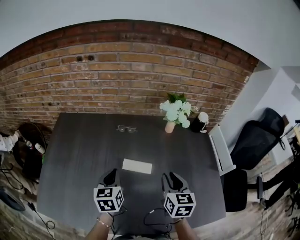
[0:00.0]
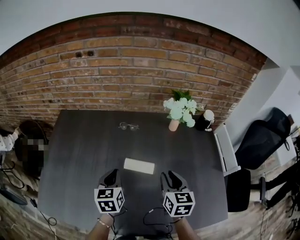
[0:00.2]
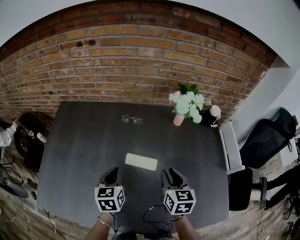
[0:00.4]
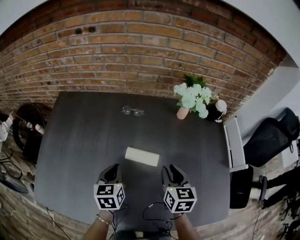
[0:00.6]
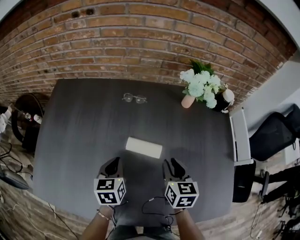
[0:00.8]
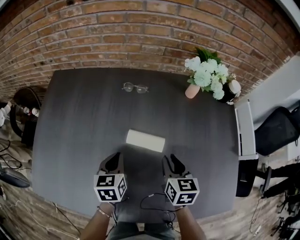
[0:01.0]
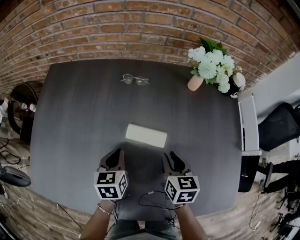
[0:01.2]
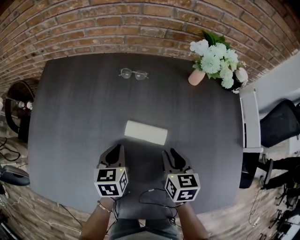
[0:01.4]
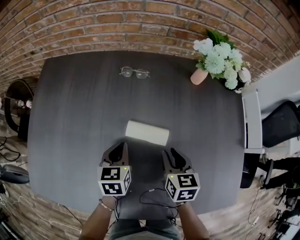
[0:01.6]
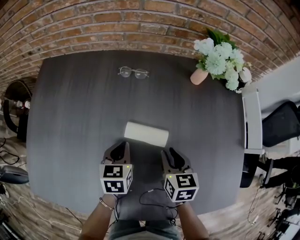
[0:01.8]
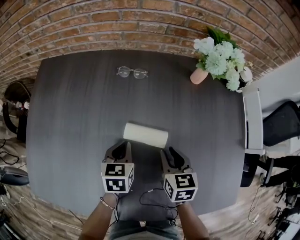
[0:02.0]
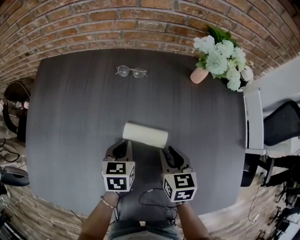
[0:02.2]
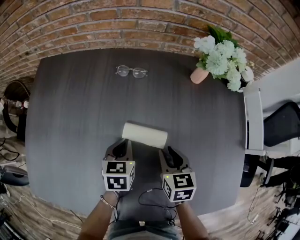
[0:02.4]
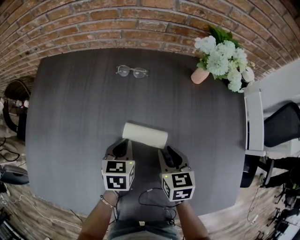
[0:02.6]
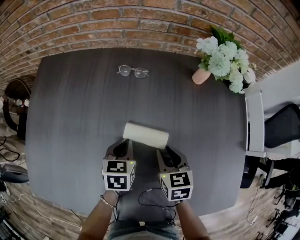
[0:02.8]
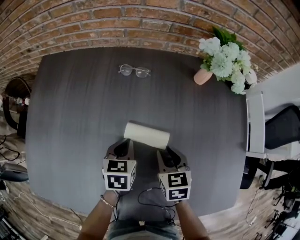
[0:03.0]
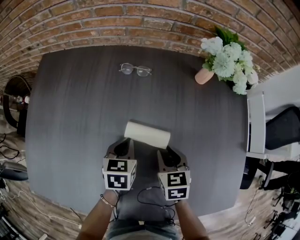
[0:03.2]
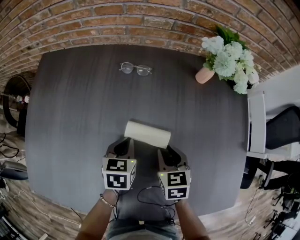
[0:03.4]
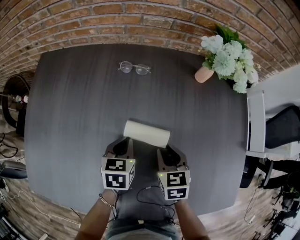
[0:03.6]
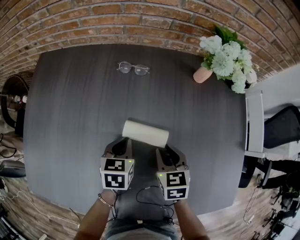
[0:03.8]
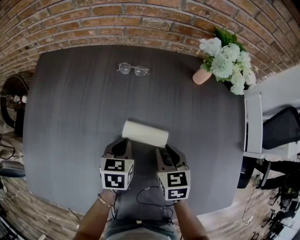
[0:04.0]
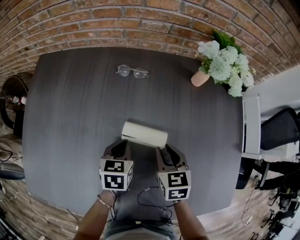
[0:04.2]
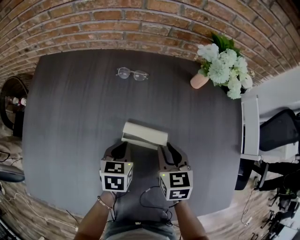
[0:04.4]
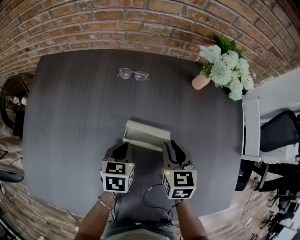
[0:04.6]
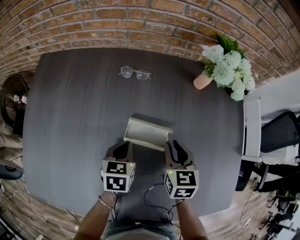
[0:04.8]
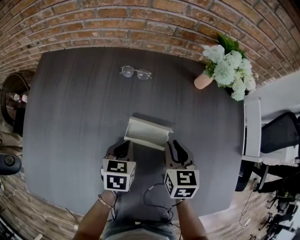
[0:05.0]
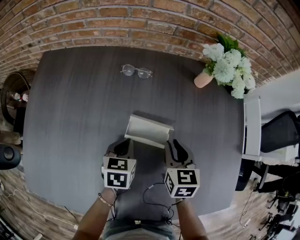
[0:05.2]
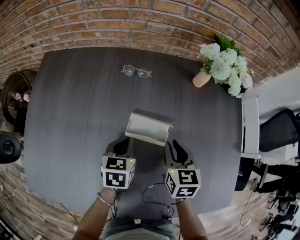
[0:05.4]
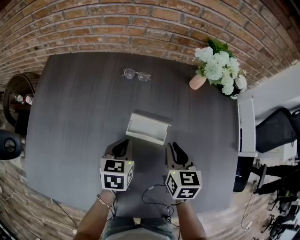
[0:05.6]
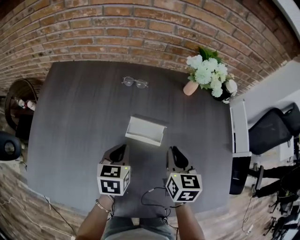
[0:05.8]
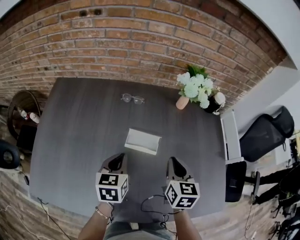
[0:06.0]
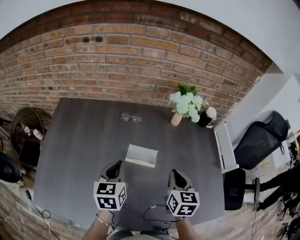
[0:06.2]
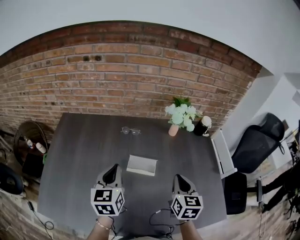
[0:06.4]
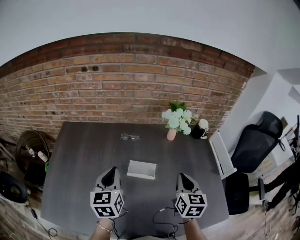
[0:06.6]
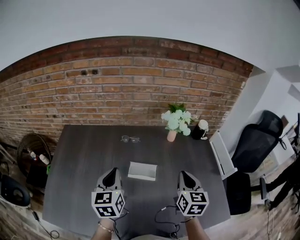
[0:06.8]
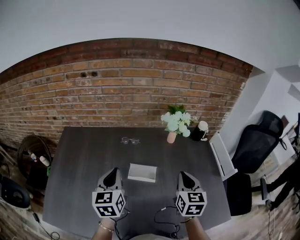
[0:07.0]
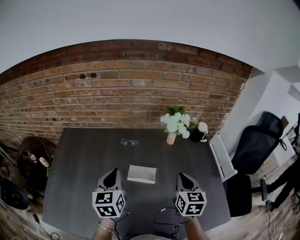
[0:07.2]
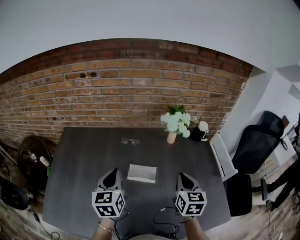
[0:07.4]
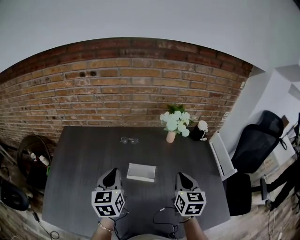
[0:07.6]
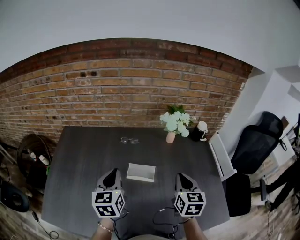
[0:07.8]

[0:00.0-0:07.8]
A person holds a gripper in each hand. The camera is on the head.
0:00.0 to 0:01.6: The grippers both shift downward by approximately 15 cm.
0:01.6 to 0:03.2: The grippers move only a little.
0:03.2 to 0:04.6: The right gripper shifts by some 5 cm.
0:04.6 to 0:06.2: The left gripper heads upward, covering approximately 20 cm, and changes its angle by roughly 20 degrees; the right gripper goes some 15 cm upward and backward, and closes up.
0:06.2 to 0:07.8: The grippers both shift upward by approximately 5 cm.

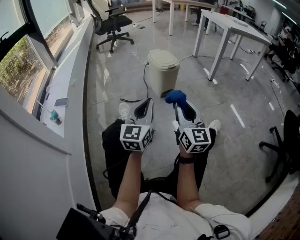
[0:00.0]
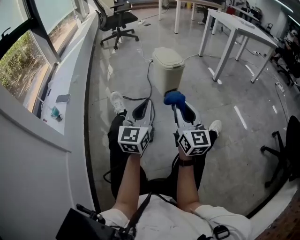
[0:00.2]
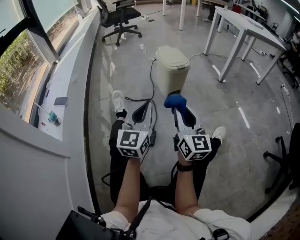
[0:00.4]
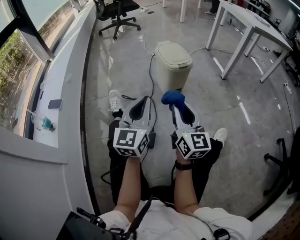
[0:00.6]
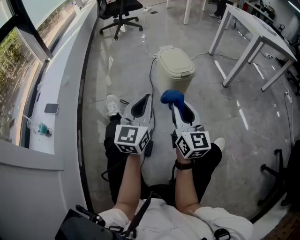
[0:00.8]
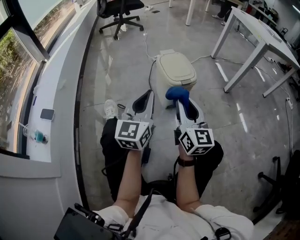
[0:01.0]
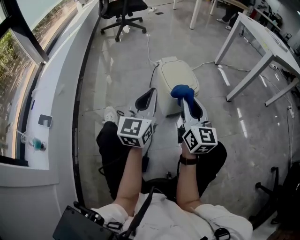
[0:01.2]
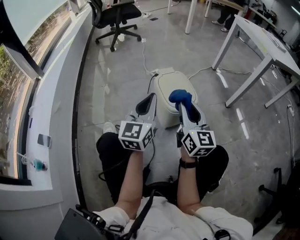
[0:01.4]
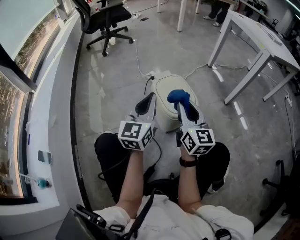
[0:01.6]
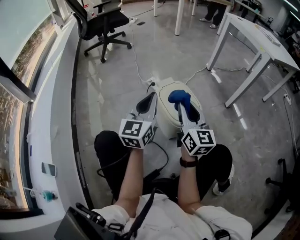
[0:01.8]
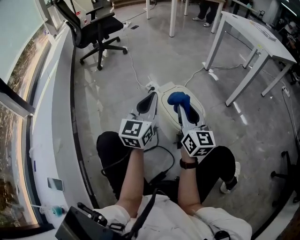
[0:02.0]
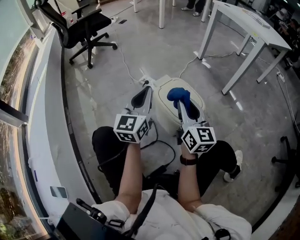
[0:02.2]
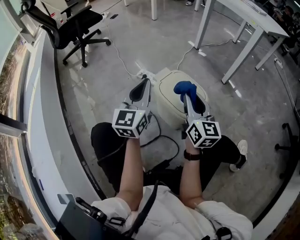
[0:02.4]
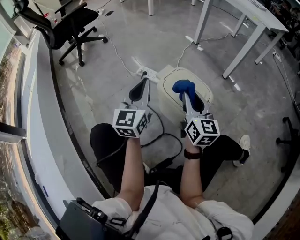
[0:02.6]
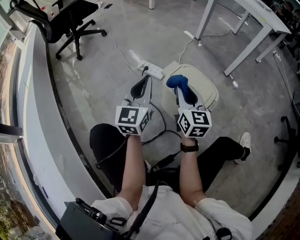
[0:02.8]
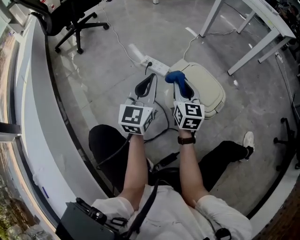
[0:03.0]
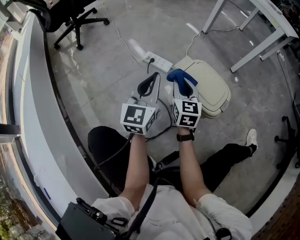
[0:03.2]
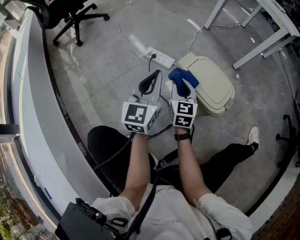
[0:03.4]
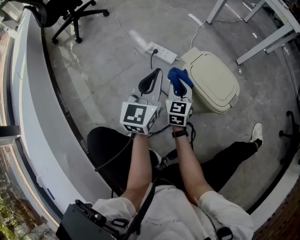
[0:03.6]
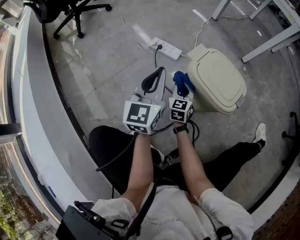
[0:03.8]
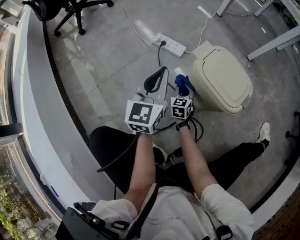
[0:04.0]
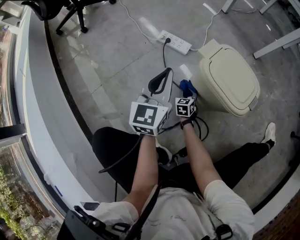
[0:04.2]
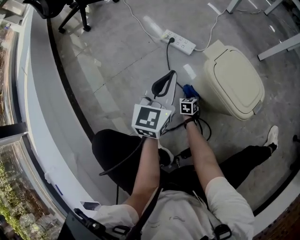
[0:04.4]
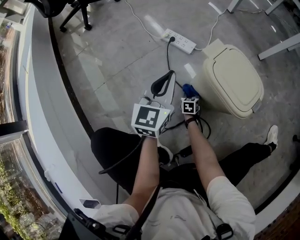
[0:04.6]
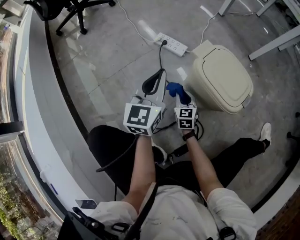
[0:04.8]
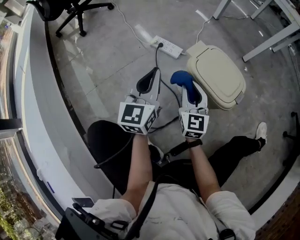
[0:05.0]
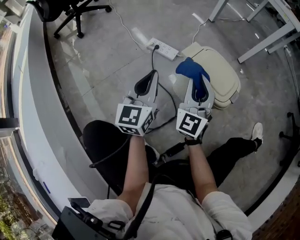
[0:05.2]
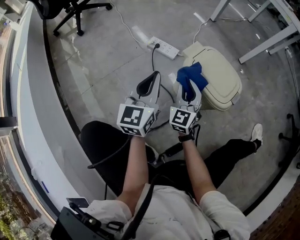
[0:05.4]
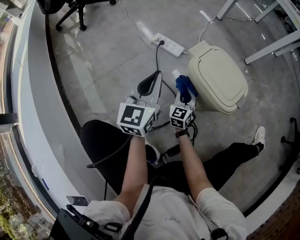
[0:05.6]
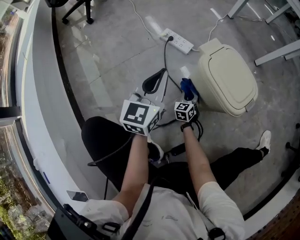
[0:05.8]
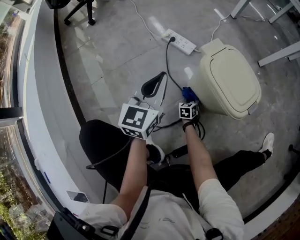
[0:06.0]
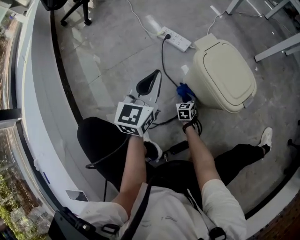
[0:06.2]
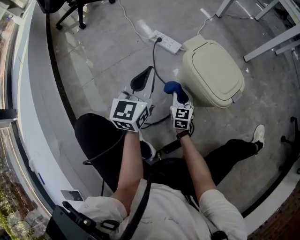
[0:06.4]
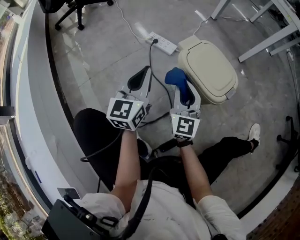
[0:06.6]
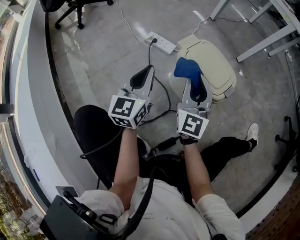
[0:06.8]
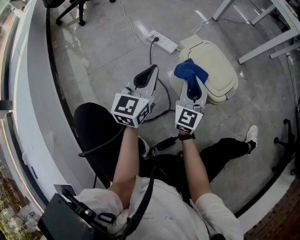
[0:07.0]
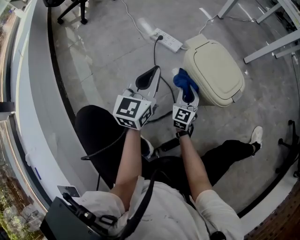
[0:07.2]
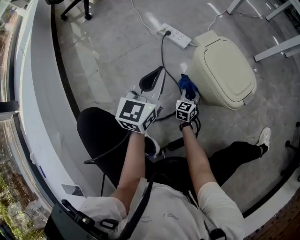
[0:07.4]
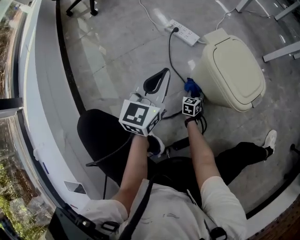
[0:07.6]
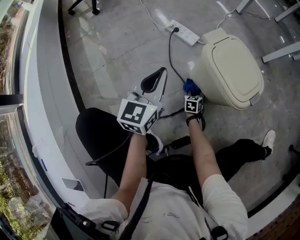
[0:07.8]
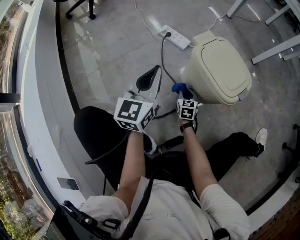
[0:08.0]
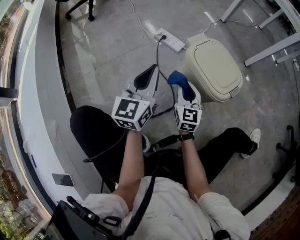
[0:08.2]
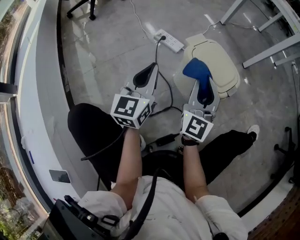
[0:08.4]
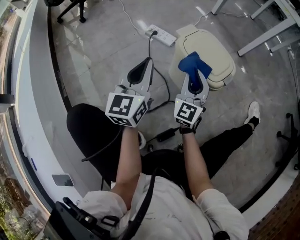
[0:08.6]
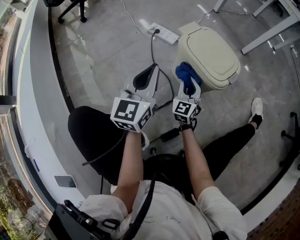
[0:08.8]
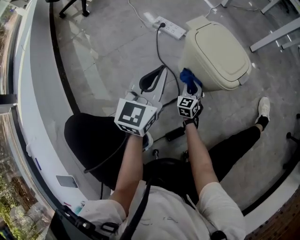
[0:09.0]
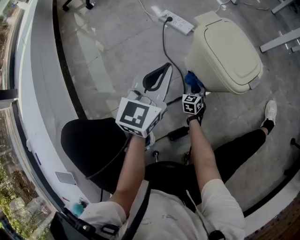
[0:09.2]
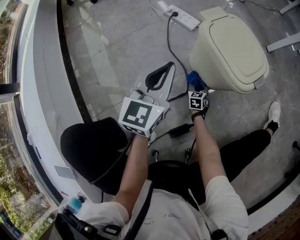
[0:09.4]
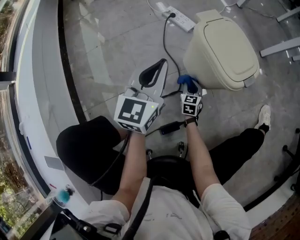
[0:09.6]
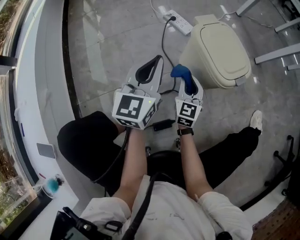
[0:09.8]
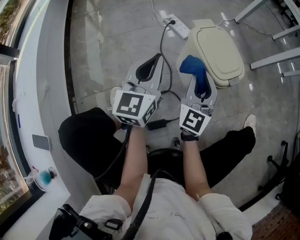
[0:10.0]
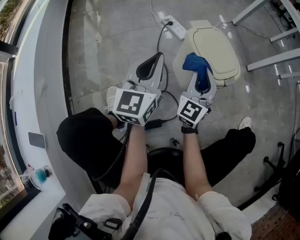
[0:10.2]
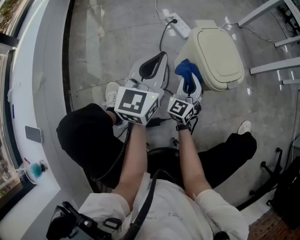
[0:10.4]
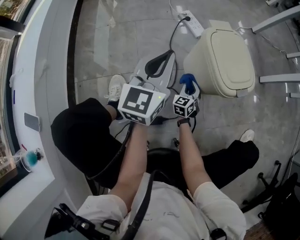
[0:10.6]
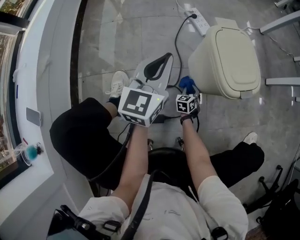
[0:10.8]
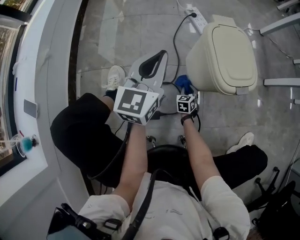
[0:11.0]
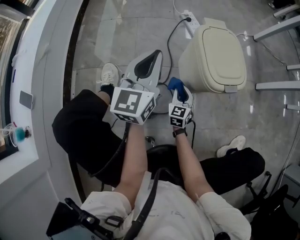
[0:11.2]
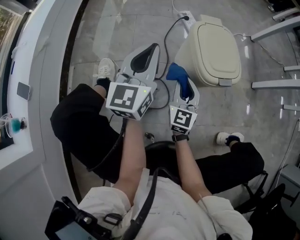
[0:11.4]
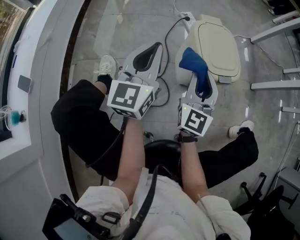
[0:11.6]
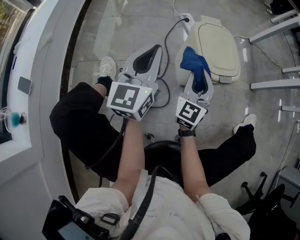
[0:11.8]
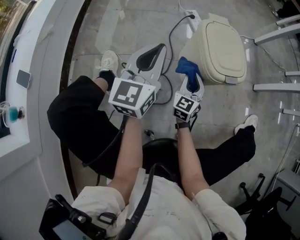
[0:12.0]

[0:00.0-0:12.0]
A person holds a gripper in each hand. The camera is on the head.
0:00.0 to 0:01.6: Both grippers are carried forward, about 50 cm.
0:01.6 to 0:03.0: The left gripper shifts approximately 20 cm forward, to the left and downward, while the right gripper heads to the left, forward and downward, covering some 25 cm, and turns by about 30 degrees.
0:03.0 to 0:04.4: The left gripper travels downward by roughly 10 cm. Meanwhile the right gripper heads downward, covering some 40 cm, and tilts its fingers roughly 40 degrees downward.
0:04.4 to 0:06.0: The right gripper moves about 50 cm upward and comes back.
0:06.0 to 0:07.6: The right gripper reaches roughly 50 cm upward, then returns.
0:07.6 to 0:09.0: The right gripper goes upward and returns, some 50 cm each way. The left gripper heads backward, covering about 5 cm.
0:09.0 to 0:10.4: The right gripper moves up and down over approximately 40 cm, changing direction 2 times, and rotates some 20 degrees. Meanwhile the left gripper swivels some 20 degrees.
0:10.4 to 0:12.0: The right gripper goes up and down, roughly 40 cm each way, reversing 2 times. The left gripper travels backward by approximately 5 cm.

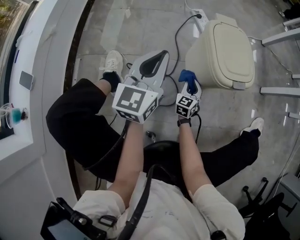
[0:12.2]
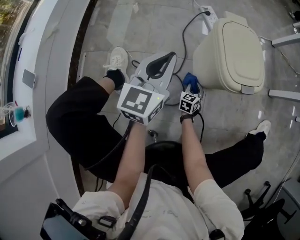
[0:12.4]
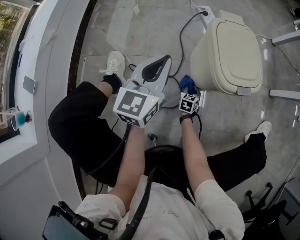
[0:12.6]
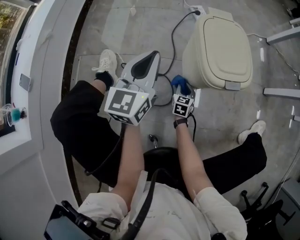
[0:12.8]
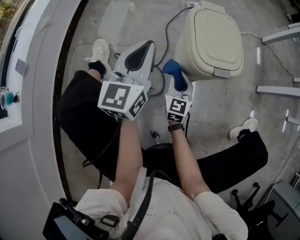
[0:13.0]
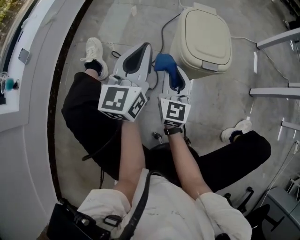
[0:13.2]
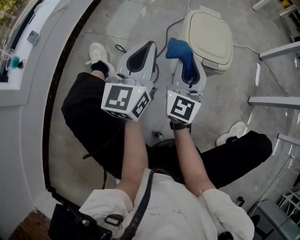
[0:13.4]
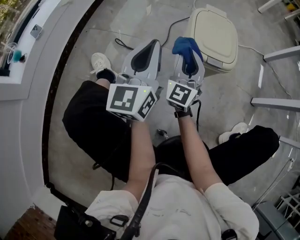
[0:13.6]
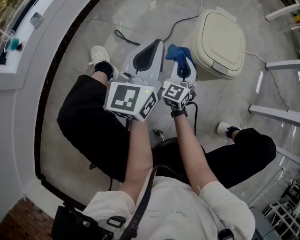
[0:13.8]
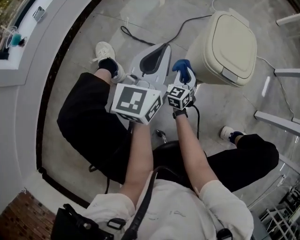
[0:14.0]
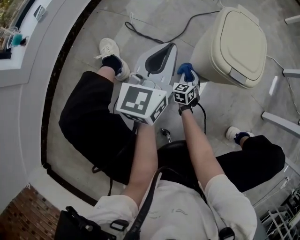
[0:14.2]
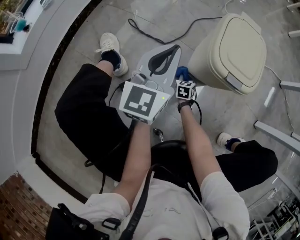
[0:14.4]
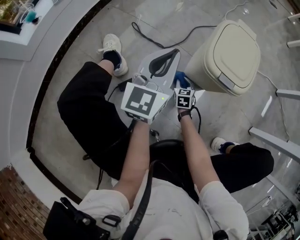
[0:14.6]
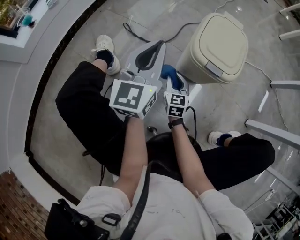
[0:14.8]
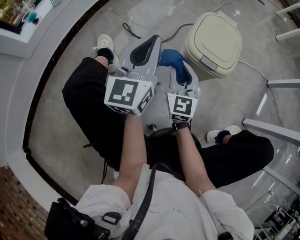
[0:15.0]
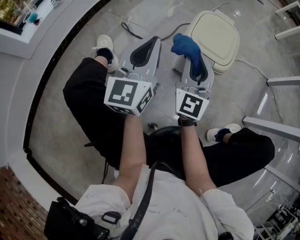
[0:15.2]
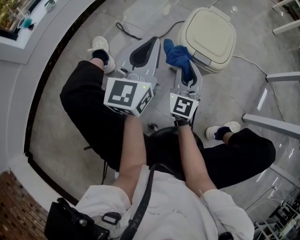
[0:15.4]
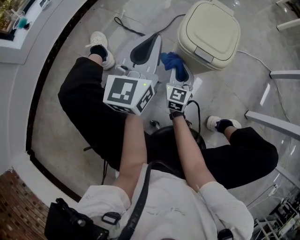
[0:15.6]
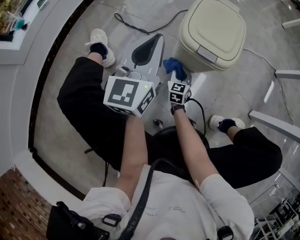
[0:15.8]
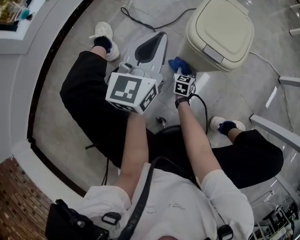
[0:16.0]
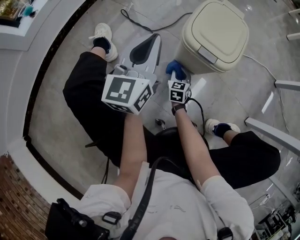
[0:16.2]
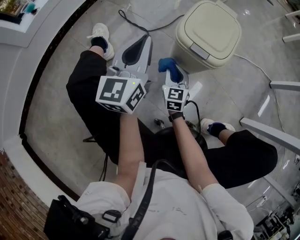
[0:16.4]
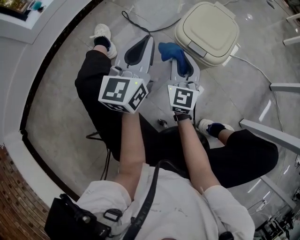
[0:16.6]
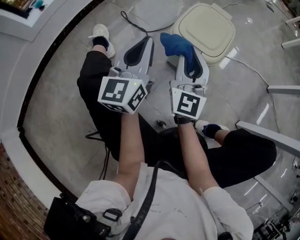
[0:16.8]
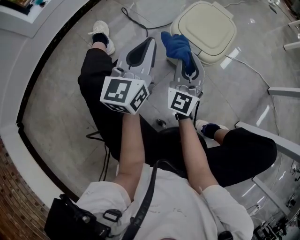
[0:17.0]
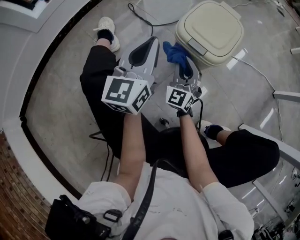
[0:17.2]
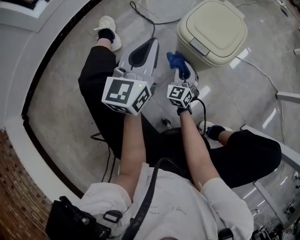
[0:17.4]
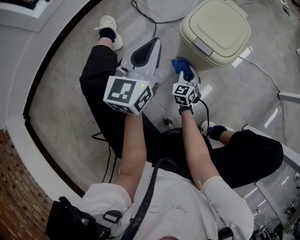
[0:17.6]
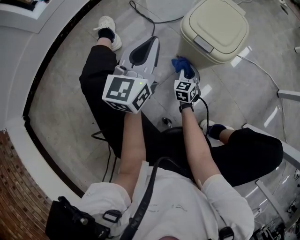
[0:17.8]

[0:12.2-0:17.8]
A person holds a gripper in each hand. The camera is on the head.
0:12.2 to 0:13.6: The left gripper shifts by some 15 cm, and changes its angle by about 30 degrees, while the right gripper swings up and down, approximately 40 cm each way, with 2 reversals, and turns by roughly 40 degrees.
0:13.6 to 0:15.0: The right gripper shifts some 5 cm backward, moves roughly 40 cm downward and comes back, and turns by some 30 degrees.
0:15.0 to 0:16.4: The right gripper moves up and down over approximately 40 cm, changing direction 2 times.
0:16.4 to 0:17.8: The right gripper moves to the right, approximately 5 cm, and goes upward and returns, about 25 cm each way.
